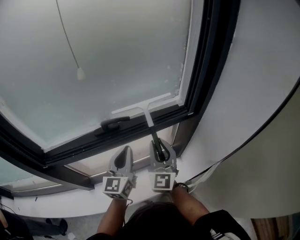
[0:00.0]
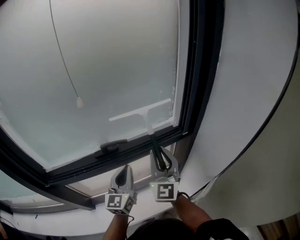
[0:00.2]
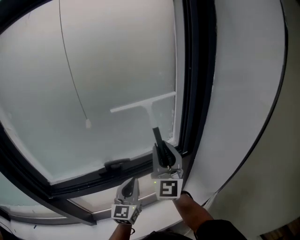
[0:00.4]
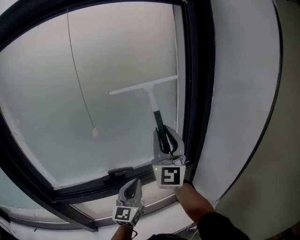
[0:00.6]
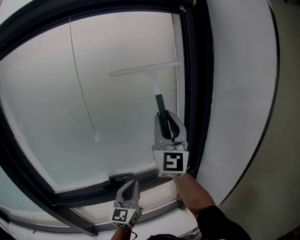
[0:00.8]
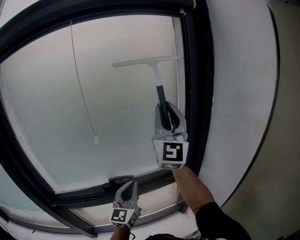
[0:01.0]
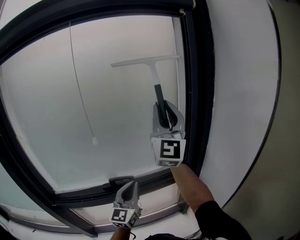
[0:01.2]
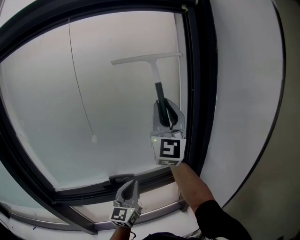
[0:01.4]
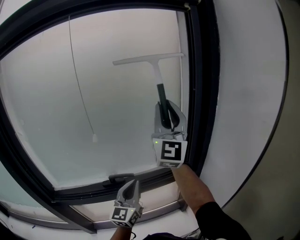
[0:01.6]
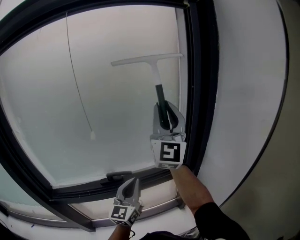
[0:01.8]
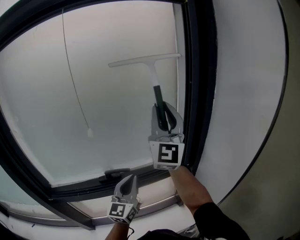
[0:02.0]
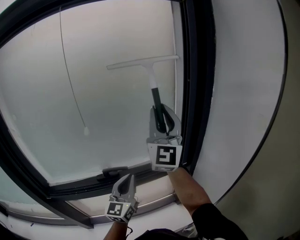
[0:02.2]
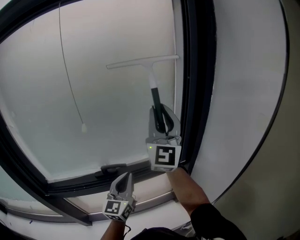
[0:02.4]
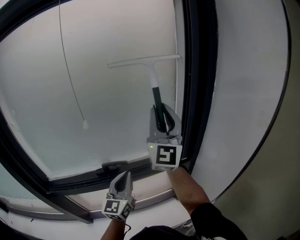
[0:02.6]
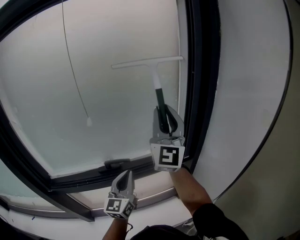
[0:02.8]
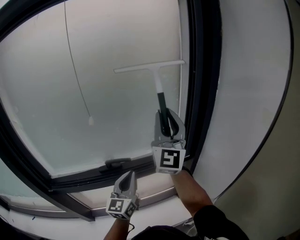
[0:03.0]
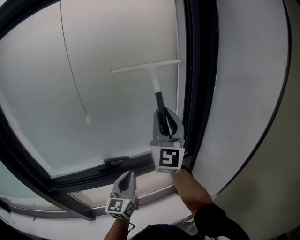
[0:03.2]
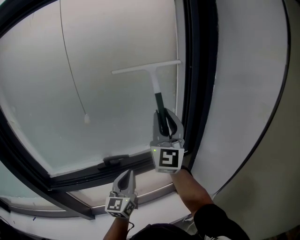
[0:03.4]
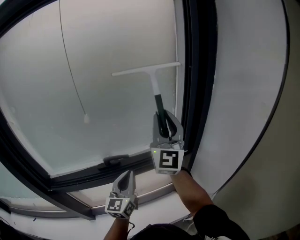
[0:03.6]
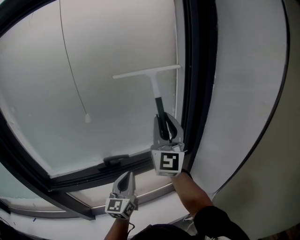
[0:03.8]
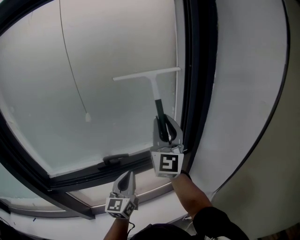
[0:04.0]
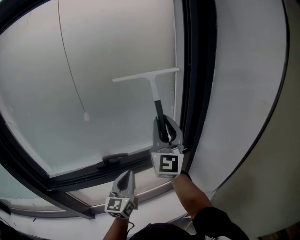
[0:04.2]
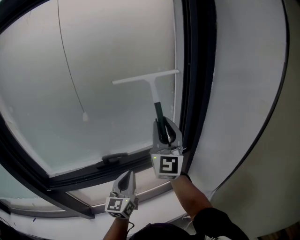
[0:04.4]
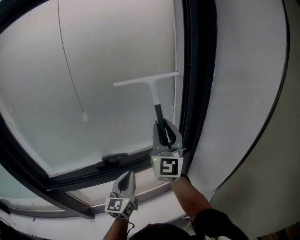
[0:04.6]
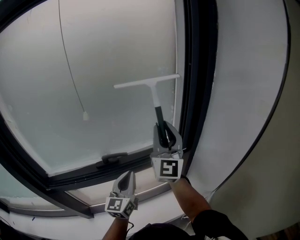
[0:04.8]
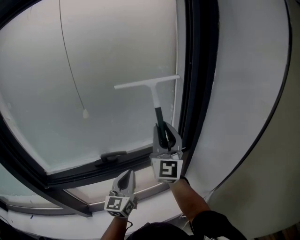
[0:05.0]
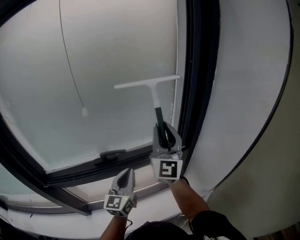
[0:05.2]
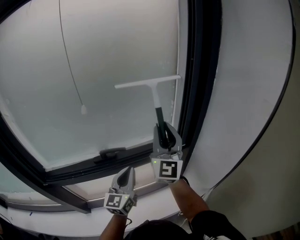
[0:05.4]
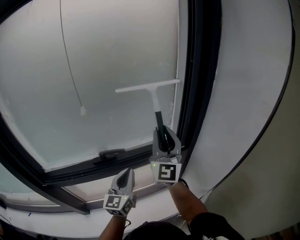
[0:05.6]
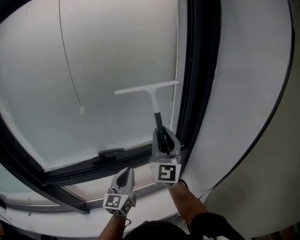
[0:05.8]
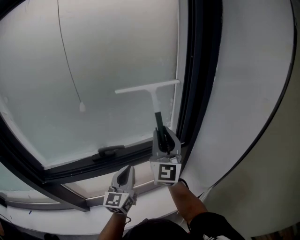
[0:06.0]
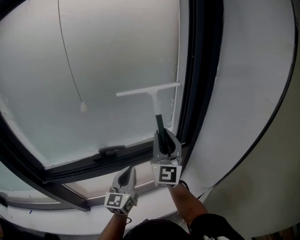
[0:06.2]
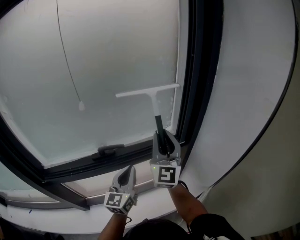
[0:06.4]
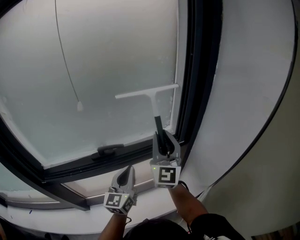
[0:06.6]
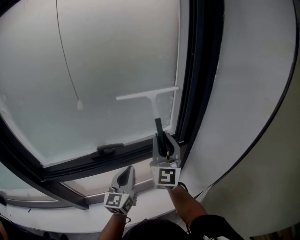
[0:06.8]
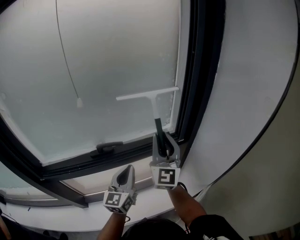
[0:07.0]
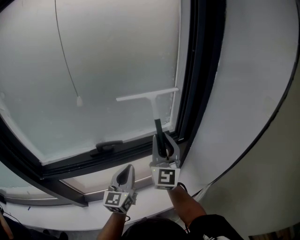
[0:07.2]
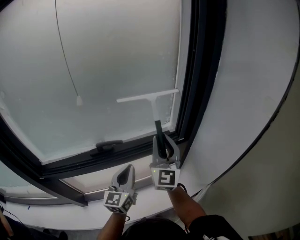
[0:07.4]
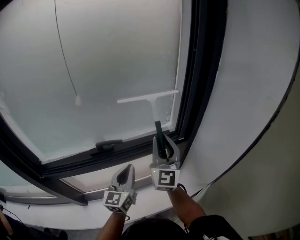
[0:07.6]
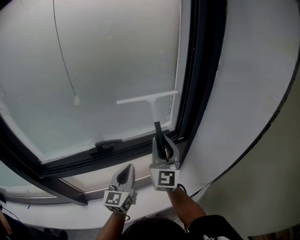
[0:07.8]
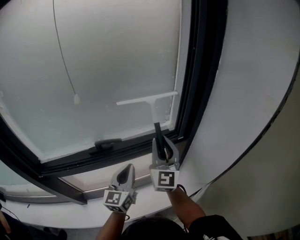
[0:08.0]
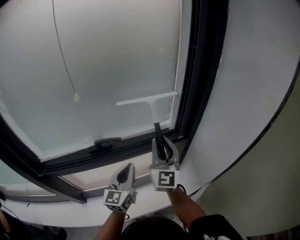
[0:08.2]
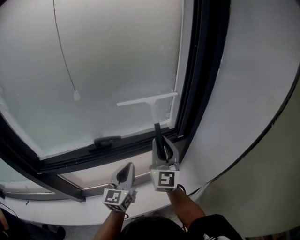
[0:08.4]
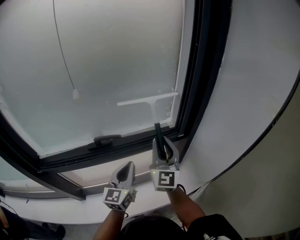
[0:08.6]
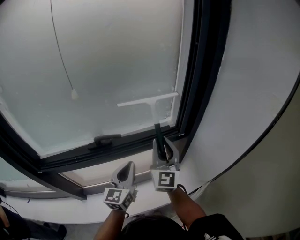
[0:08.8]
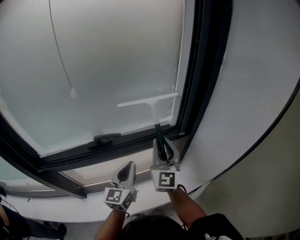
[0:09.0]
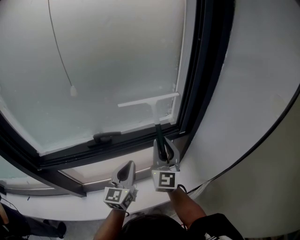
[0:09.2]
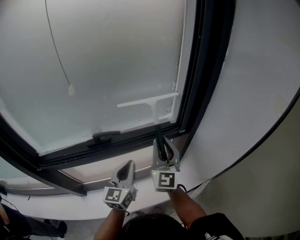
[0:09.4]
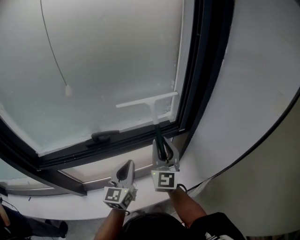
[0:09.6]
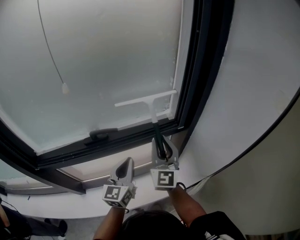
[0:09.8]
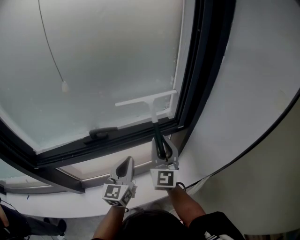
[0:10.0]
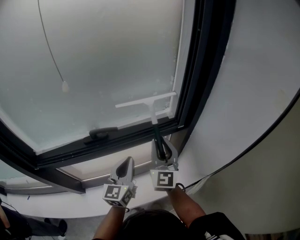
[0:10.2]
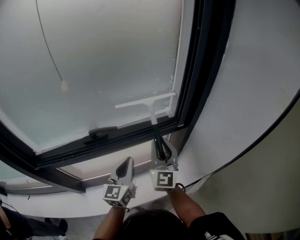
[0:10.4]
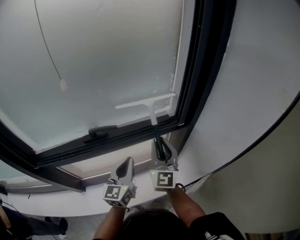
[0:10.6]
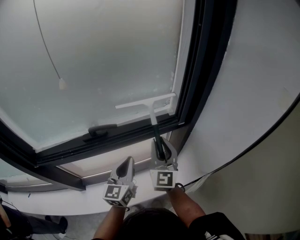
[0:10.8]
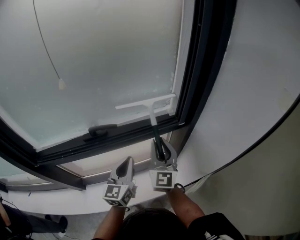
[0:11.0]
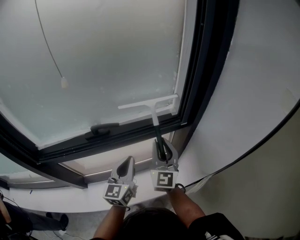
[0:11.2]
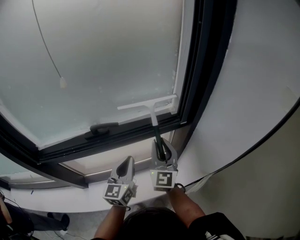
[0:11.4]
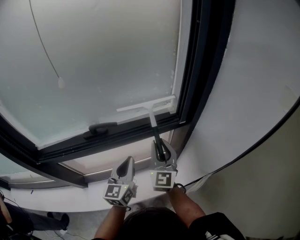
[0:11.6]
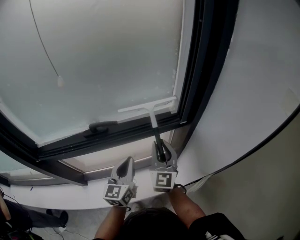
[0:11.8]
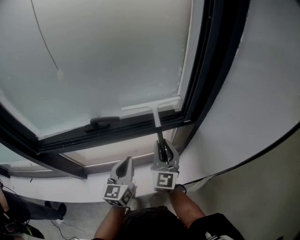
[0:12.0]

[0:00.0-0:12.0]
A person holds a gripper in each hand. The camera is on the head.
0:00.0 to 0:01.6: The right gripper travels upward by about 35 cm, and points its fingers roughly 30 degrees further upward. The left gripper travels upward by about 5 cm.
0:01.6 to 0:03.0: The right gripper moves downward, roughly 5 cm.
0:03.0 to 0:04.4: The right gripper shifts about 5 cm downward.
0:04.4 to 0:06.0: The right gripper travels downward by about 5 cm.
0:06.0 to 0:07.6: The right gripper heads downward, covering approximately 5 cm.
0:07.6 to 0:09.0: The grippers move only a little.
0:09.0 to 0:10.4: The grippers move only a little.
0:10.4 to 0:12.0: The right gripper changes place by about 5 cm.

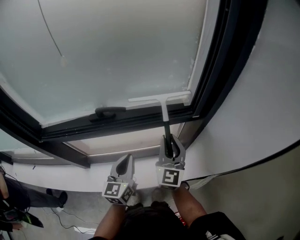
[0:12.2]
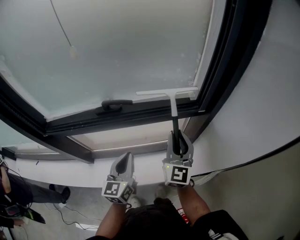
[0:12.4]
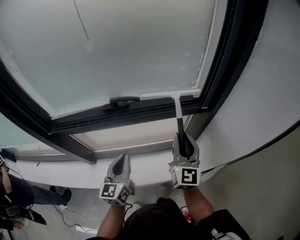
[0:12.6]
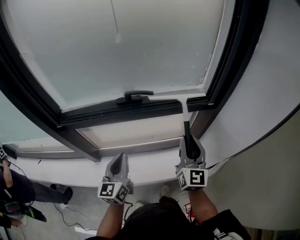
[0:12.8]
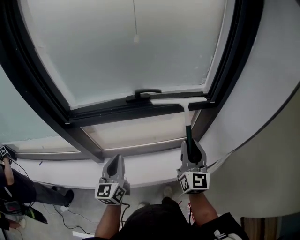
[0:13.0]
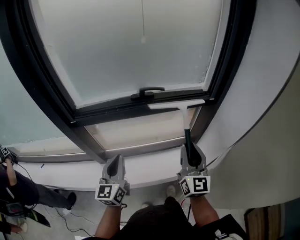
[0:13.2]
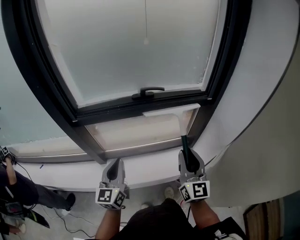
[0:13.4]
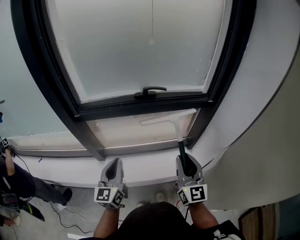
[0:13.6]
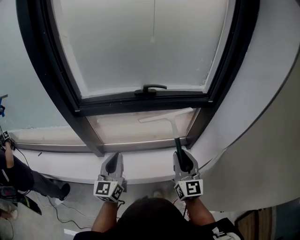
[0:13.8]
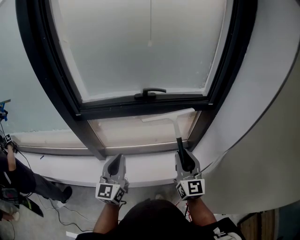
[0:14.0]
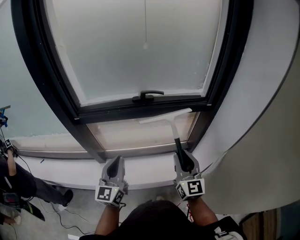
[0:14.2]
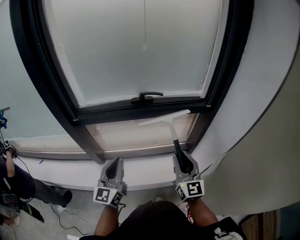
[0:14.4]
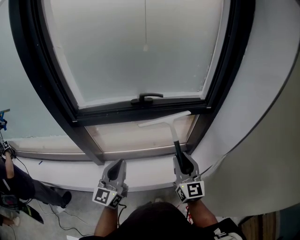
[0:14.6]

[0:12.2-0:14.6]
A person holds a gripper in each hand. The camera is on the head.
0:12.2 to 0:13.4: The left gripper moves to the left and backward, approximately 25 cm. The right gripper heads backward, covering about 25 cm.
0:13.4 to 0:14.6: The left gripper shifts by approximately 5 cm.

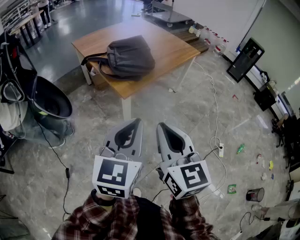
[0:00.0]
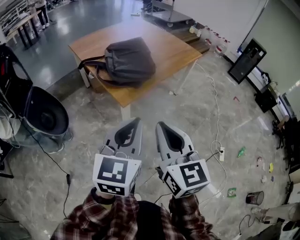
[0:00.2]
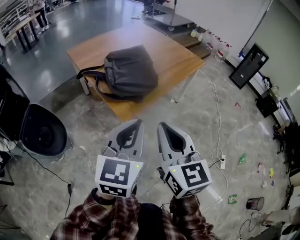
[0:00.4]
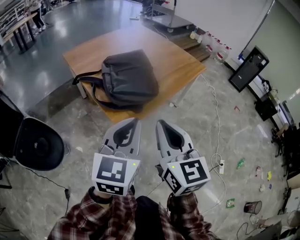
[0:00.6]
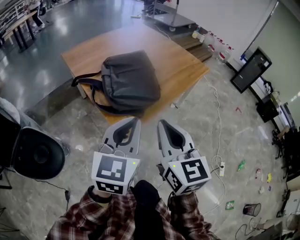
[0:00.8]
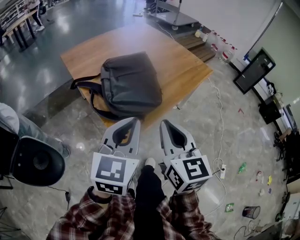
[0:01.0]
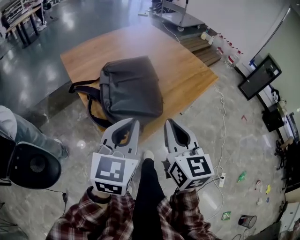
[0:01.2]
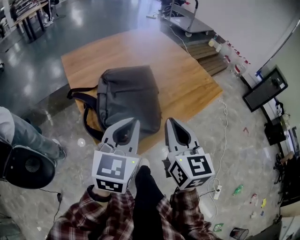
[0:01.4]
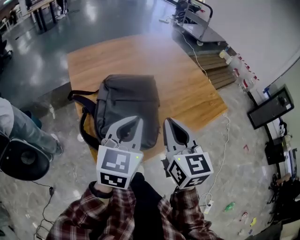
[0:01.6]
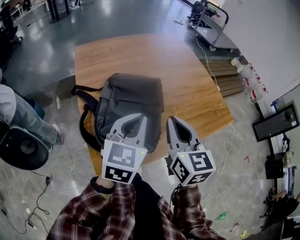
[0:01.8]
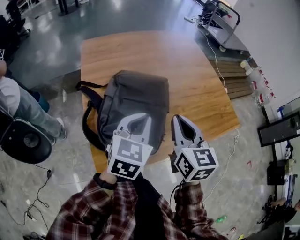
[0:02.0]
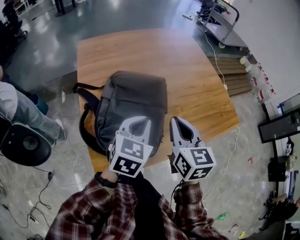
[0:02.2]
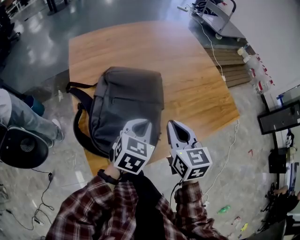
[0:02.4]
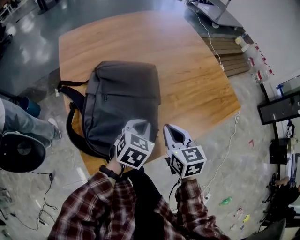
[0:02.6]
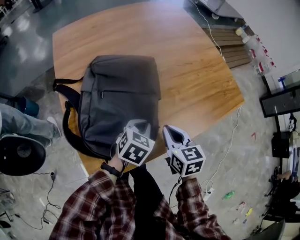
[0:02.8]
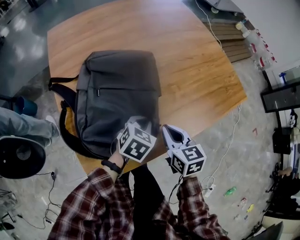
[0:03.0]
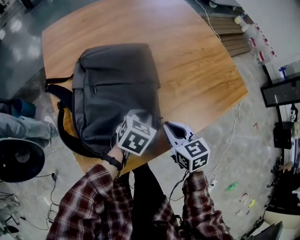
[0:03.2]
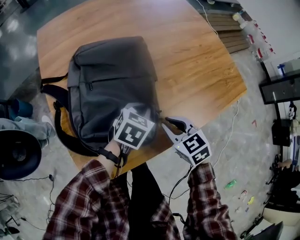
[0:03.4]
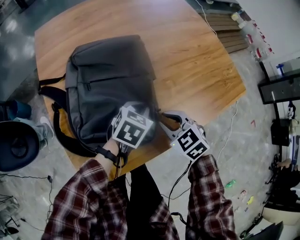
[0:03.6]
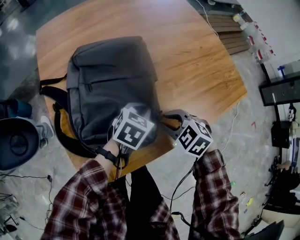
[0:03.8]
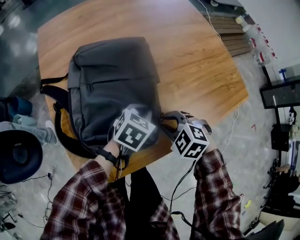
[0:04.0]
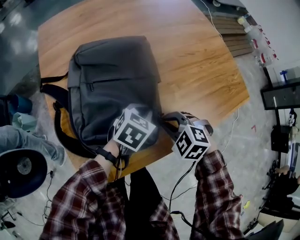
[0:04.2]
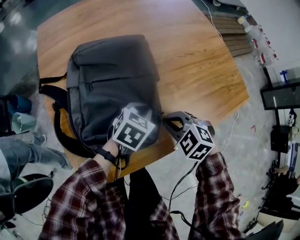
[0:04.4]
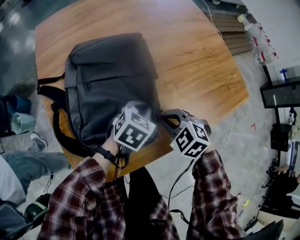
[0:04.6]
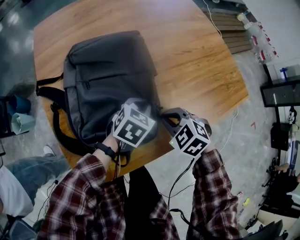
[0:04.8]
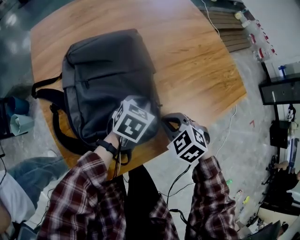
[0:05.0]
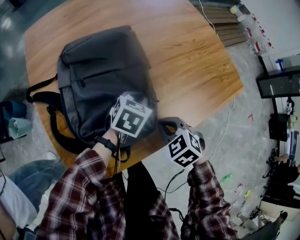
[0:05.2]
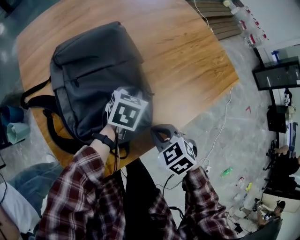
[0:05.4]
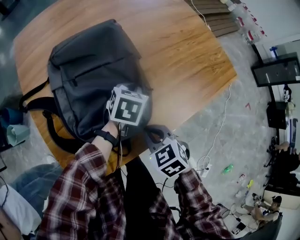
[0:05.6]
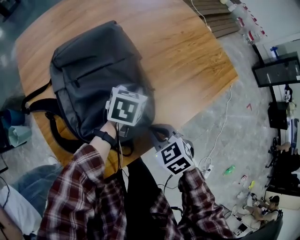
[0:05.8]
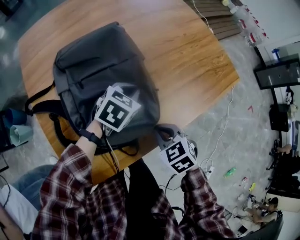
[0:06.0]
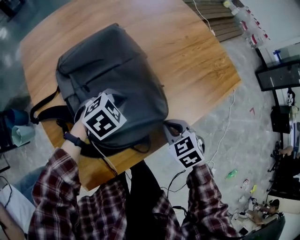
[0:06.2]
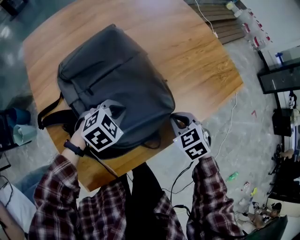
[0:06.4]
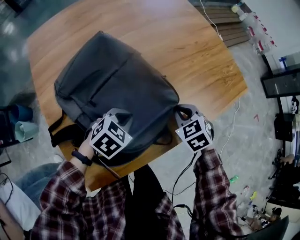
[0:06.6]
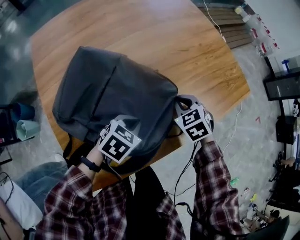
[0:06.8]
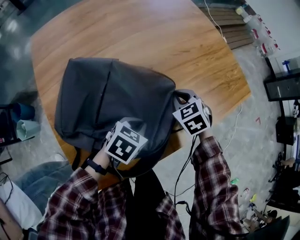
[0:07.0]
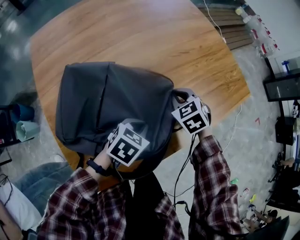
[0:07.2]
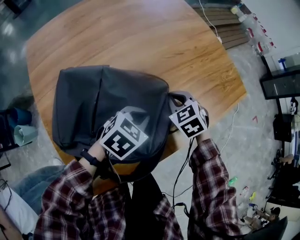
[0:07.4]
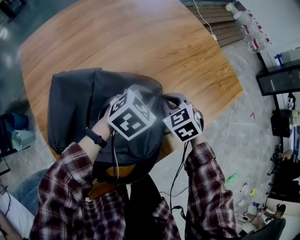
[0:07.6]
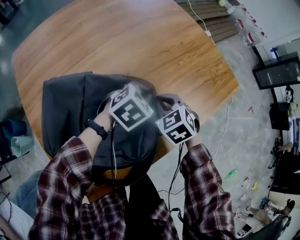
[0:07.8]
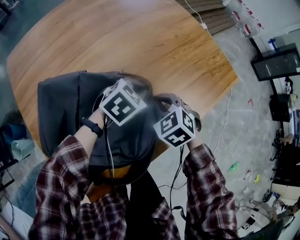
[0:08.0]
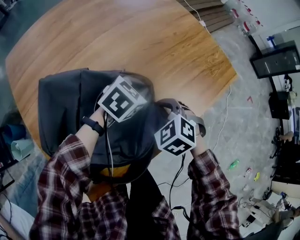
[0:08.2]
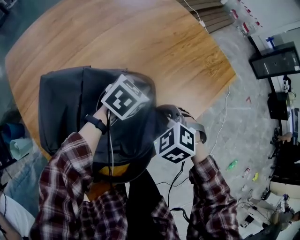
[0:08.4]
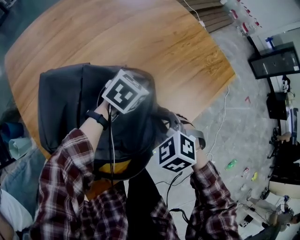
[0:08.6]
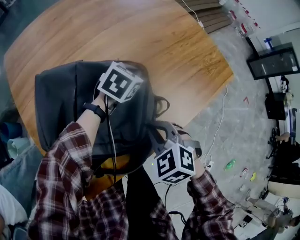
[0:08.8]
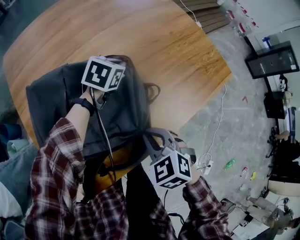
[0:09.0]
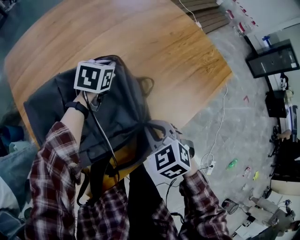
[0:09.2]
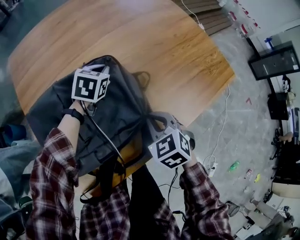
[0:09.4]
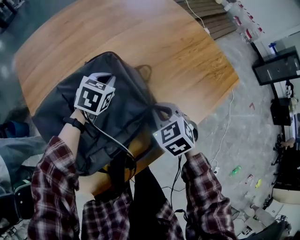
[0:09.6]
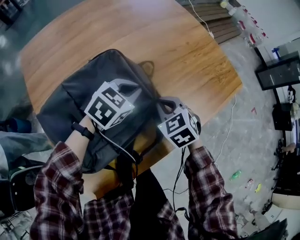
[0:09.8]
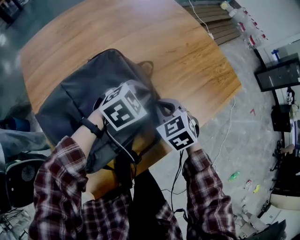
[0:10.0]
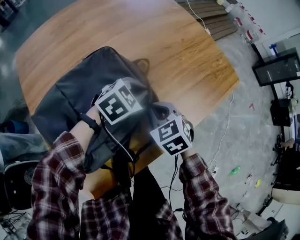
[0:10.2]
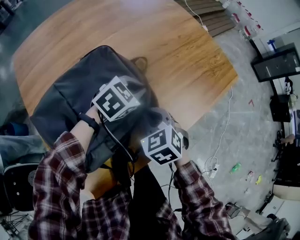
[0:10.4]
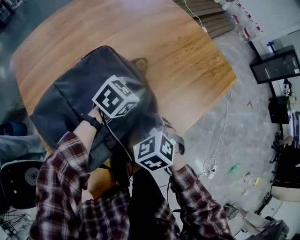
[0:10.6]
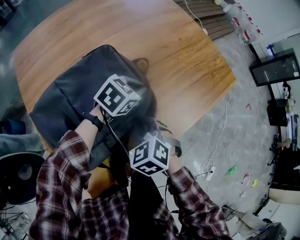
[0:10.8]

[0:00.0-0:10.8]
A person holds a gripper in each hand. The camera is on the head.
0:00.0 to 0:01.6: The pair of grippers is taken forward, roughly 60 cm.
0:01.6 to 0:03.0: Both grippers travel together downward, approximately 25 cm. The left gripper tips its fingers downward by about 30 degrees; the right gripper swivels roughly 30 degrees.
0:03.0 to 0:04.6: The right gripper ends up roughly 5 cm from where it was, and rotates around the line of its fingers by about 50 degrees, counterclockwise from behind. Meanwhile the left gripper moves forward, about 5 cm.
0:04.6 to 0:06.2: The left gripper rotates some 30 degrees. Meanwhile the right gripper goes approximately 5 cm to the right, and rotates some 30 degrees.
0:06.2 to 0:07.8: The left gripper is displaced forward and to the right by approximately 15 cm; the right gripper travels forward by about 15 cm.
0:07.8 to 0:09.2: The right gripper is displaced backward by about 15 cm. The left gripper is displaced to the left and forward by some 15 cm, and turns by approximately 30 degrees.
0:09.2 to 0:10.8: The left gripper goes about 15 cm to the right and backward, and rotates roughly 30 degrees. Meanwhile the right gripper goes some 5 cm to the left, and reaches about 10 cm forward, then returns.
